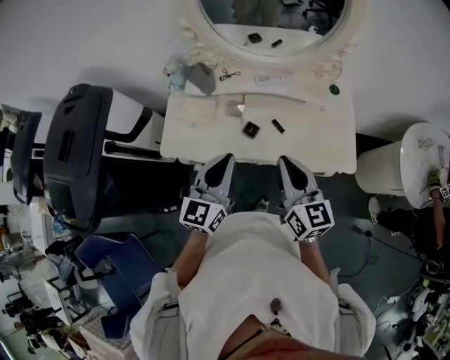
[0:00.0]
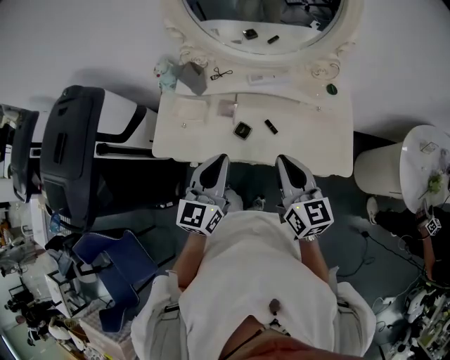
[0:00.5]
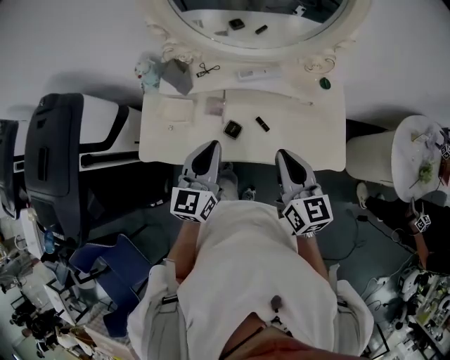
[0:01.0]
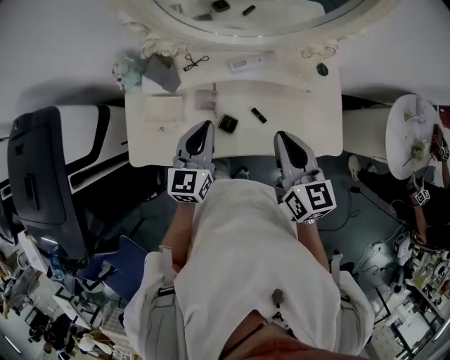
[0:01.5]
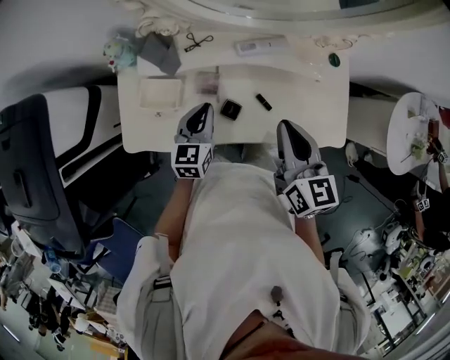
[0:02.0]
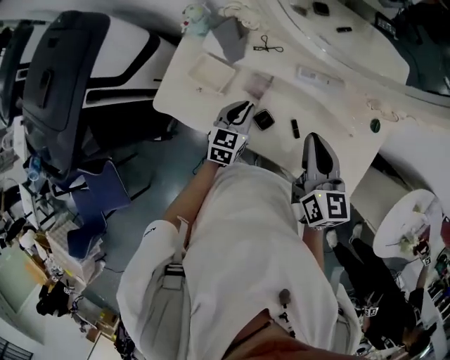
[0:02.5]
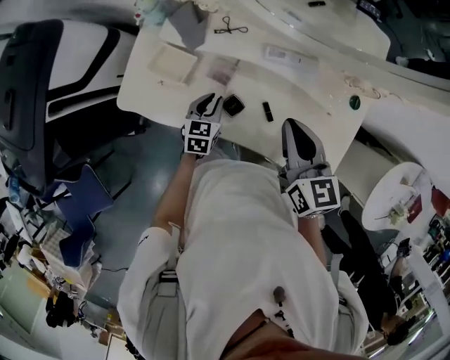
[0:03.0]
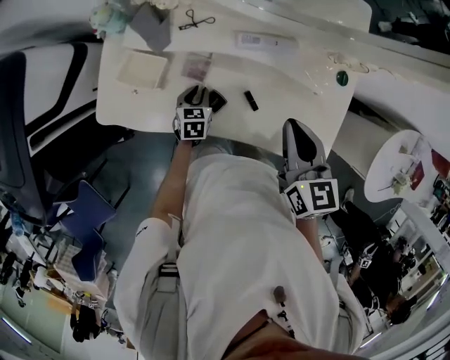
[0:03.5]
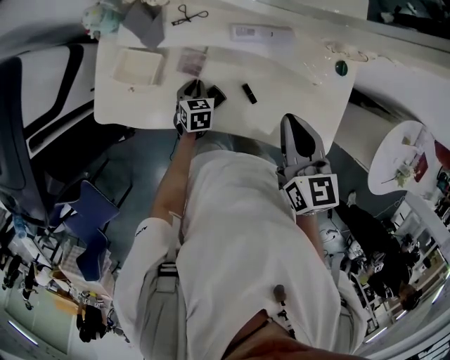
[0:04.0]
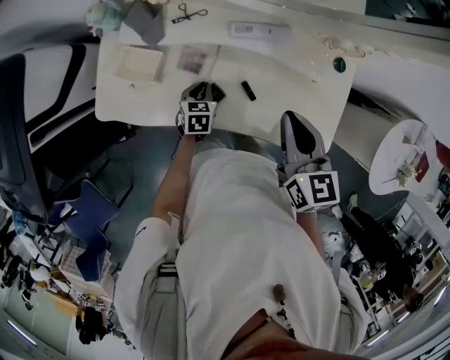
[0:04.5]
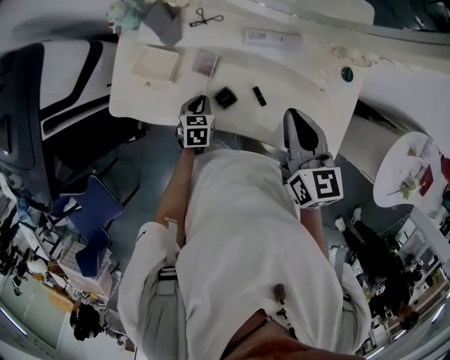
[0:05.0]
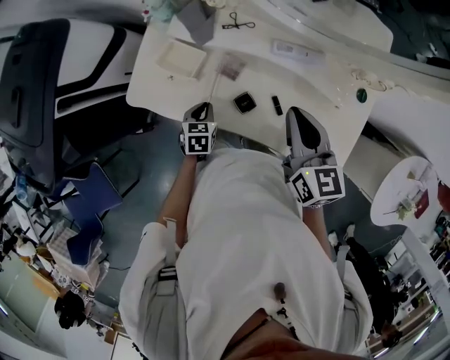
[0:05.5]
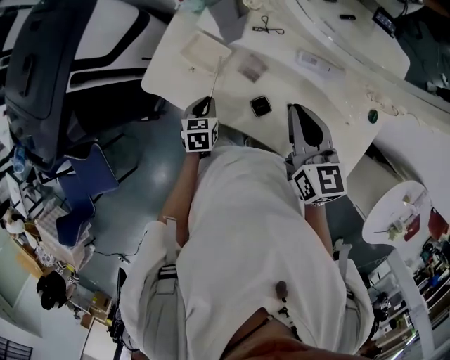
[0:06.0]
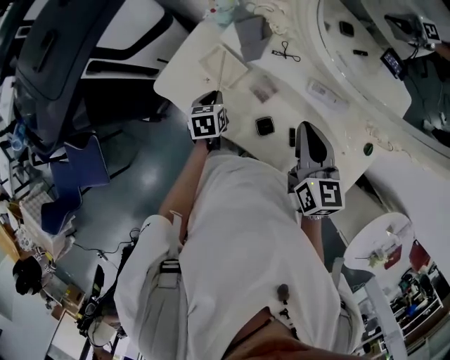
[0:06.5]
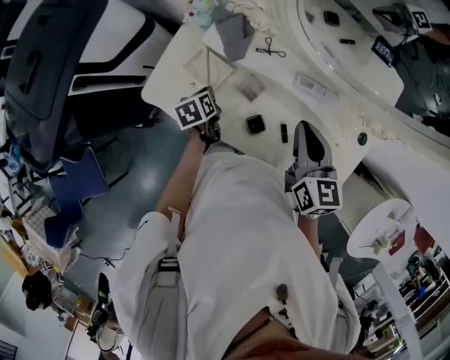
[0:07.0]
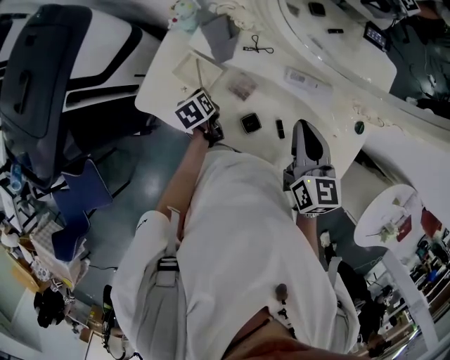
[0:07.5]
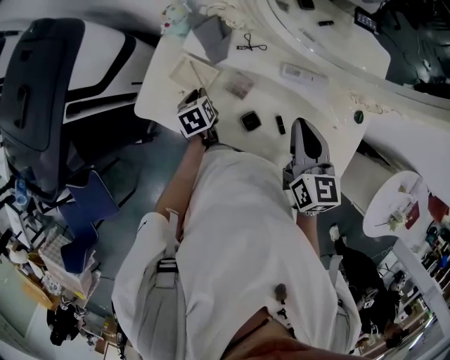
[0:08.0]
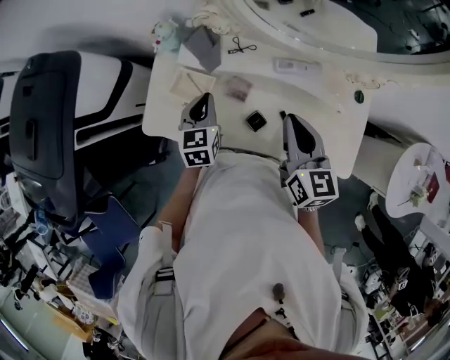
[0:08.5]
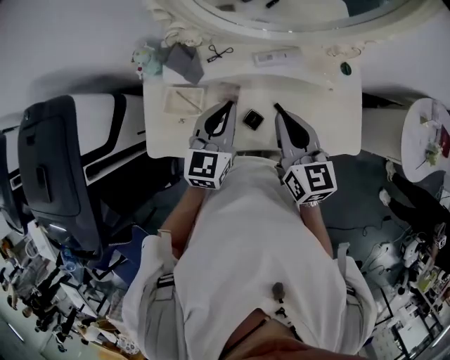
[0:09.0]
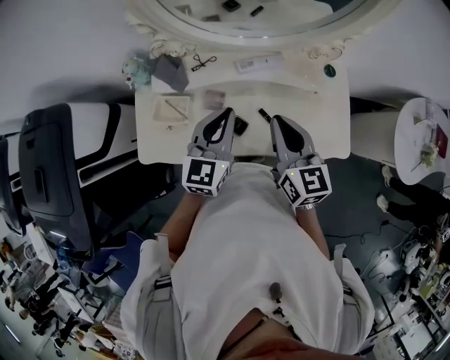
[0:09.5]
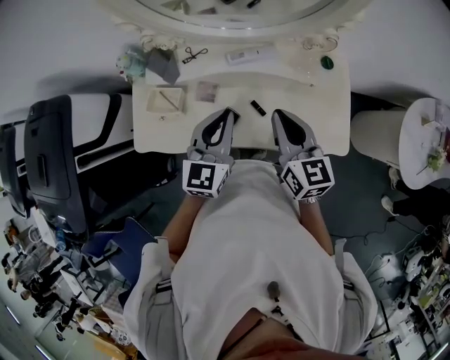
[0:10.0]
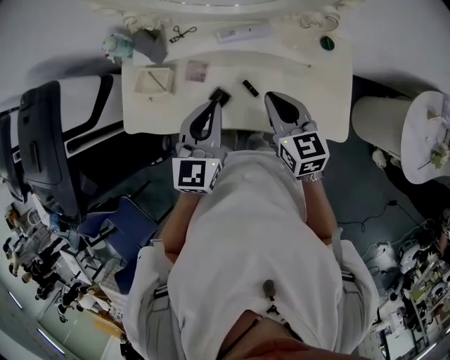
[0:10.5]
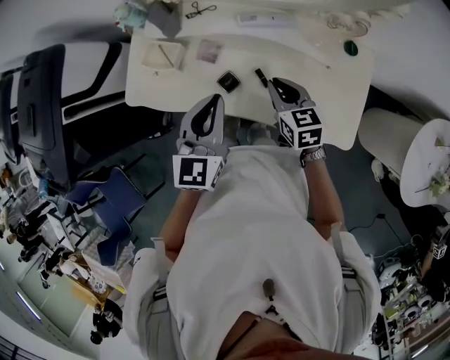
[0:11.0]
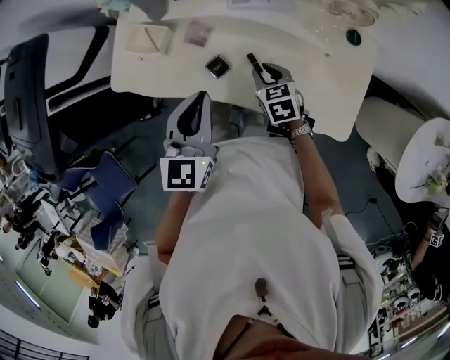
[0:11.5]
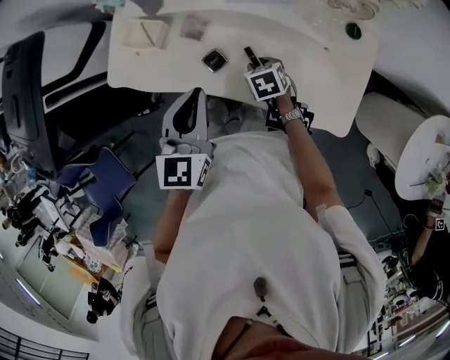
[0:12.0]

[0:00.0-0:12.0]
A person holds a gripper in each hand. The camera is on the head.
0:00.0 to 0:02.0: The left gripper goes roughly 30 cm forward and downward, and turns by roughly 20 degrees, while the right gripper heads forward, covering about 20 cm.
0:02.0 to 0:04.0: The right gripper heads to the right, covering approximately 5 cm. The left gripper heads downward, covering roughly 20 cm, and tips its fingers downward by about 30 degrees.
0:04.0 to 0:06.0: The right gripper goes some 10 cm to the left. The left gripper moves to the left, upward and backward, about 15 cm.
0:06.0 to 0:08.0: The left gripper heads forward, covering roughly 10 cm.
0:08.0 to 0:10.0: The right gripper ends up roughly 15 cm from where it was, while the left gripper changes place by roughly 35 cm, and tips its fingers upward by approximately 40 degrees.
0:10.0 to 0:12.0: The right gripper heads downward, covering approximately 30 cm, points its fingers some 50 degrees further downward, and opens up. The left gripper moves approximately 5 cm, and rotates approximately 20 degrees.

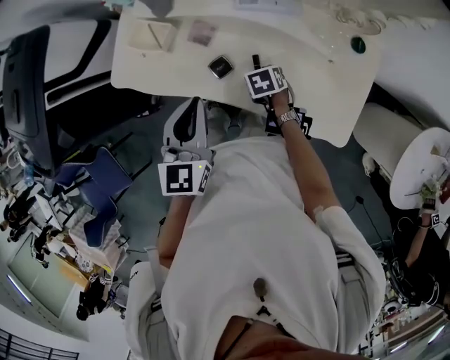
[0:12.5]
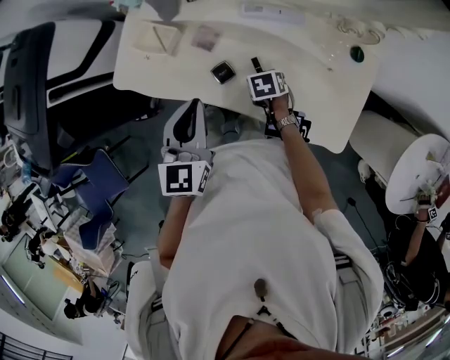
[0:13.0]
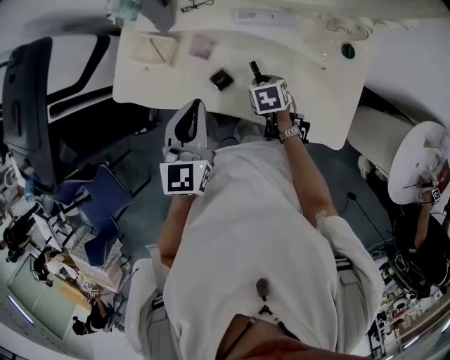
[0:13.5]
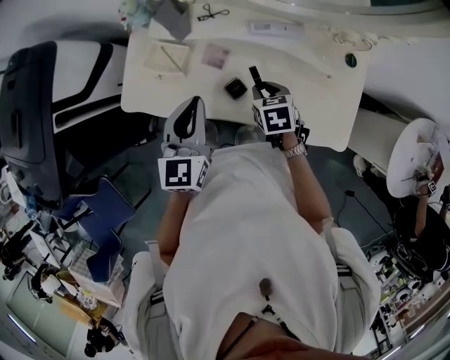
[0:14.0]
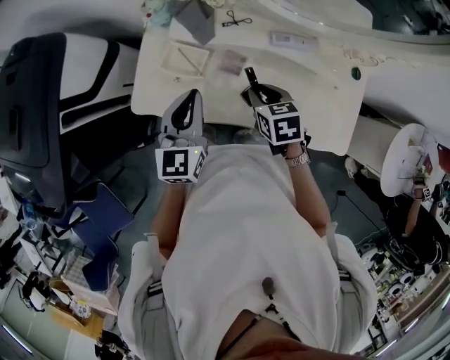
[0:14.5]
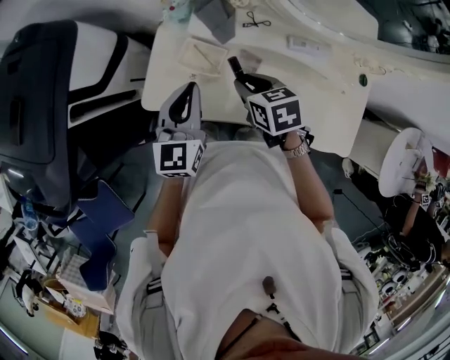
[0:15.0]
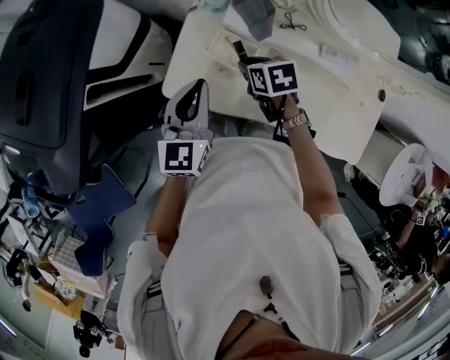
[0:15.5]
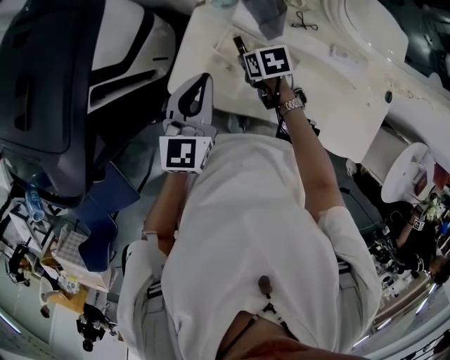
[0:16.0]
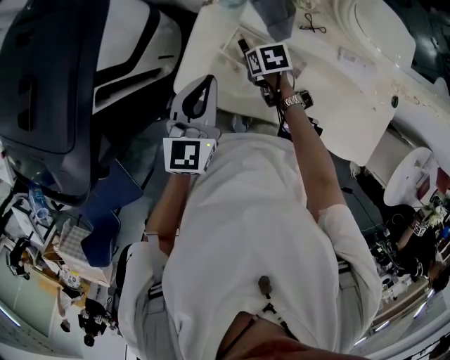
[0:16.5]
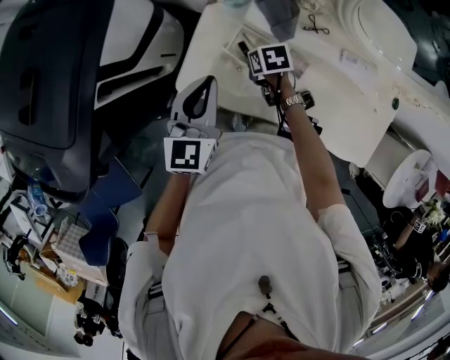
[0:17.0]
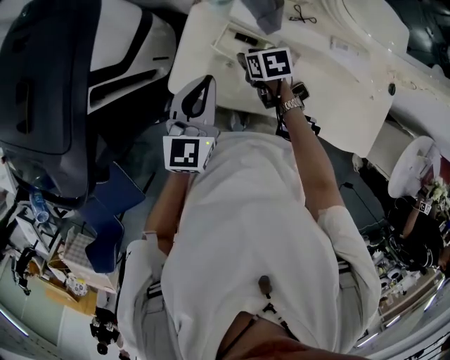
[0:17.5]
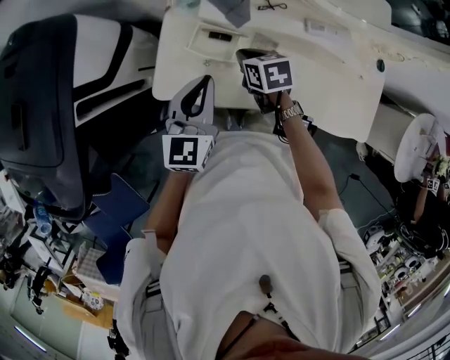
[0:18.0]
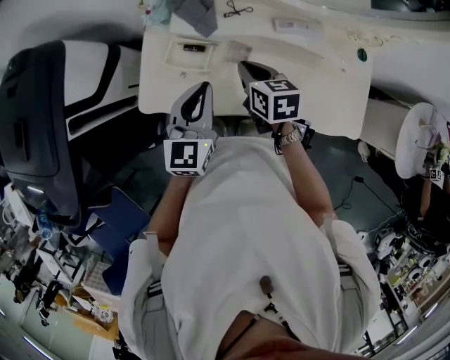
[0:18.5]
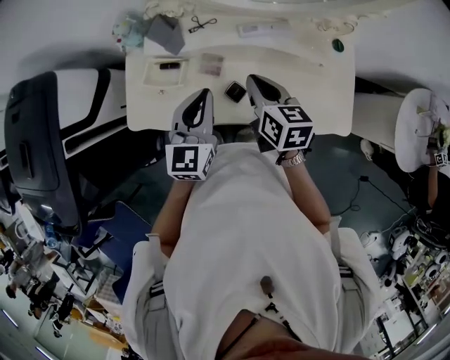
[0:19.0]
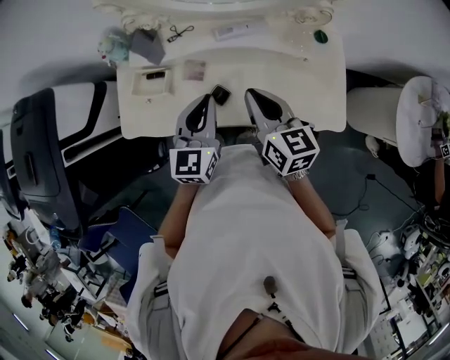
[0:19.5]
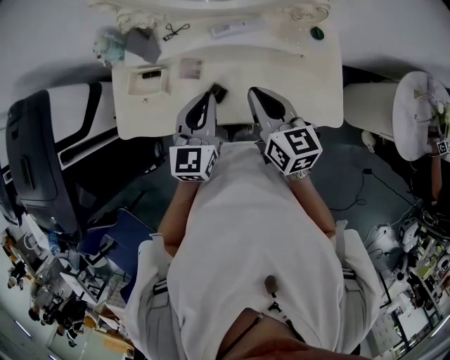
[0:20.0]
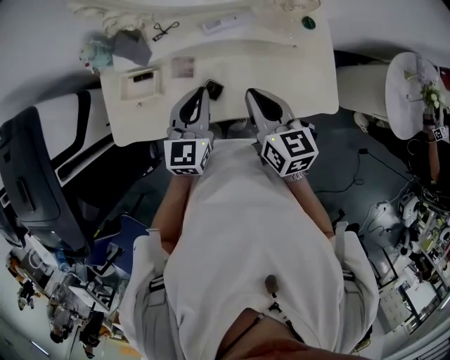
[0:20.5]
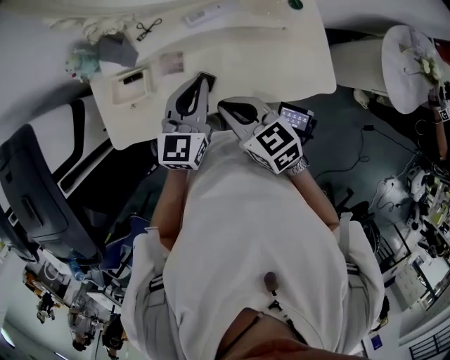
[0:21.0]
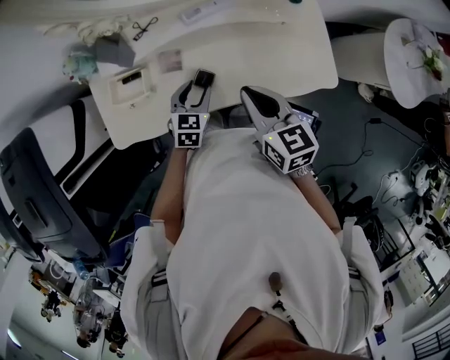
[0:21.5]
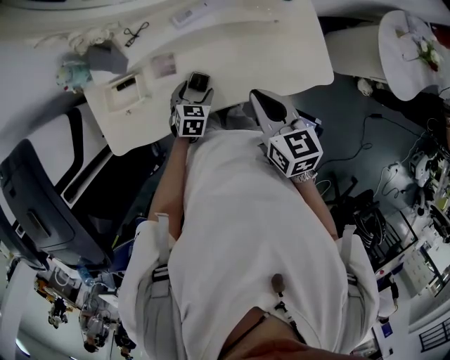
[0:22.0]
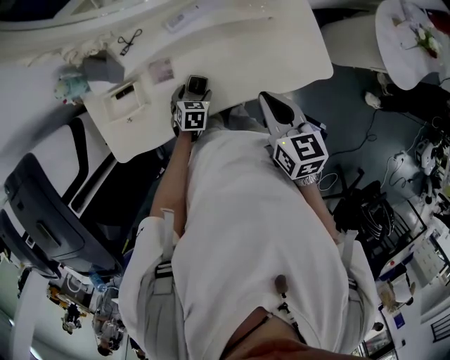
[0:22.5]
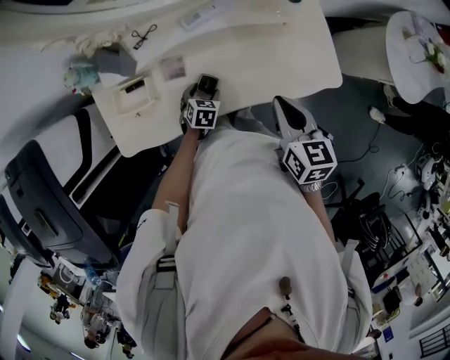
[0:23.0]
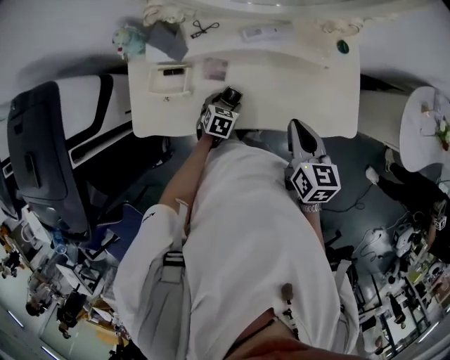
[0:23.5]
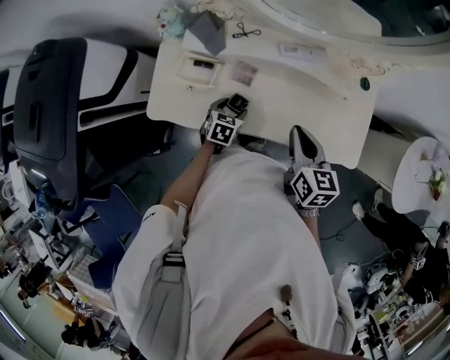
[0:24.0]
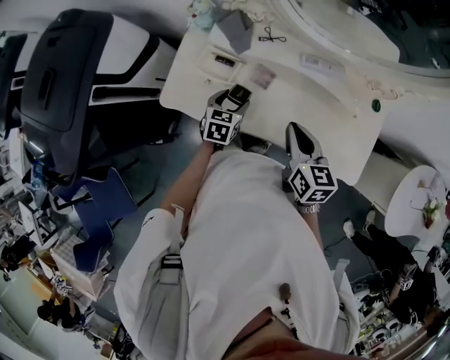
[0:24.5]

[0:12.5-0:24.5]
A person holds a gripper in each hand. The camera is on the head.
0:12.5 to 0:14.5: The left gripper shifts approximately 20 cm to the left and forward. The right gripper heads upward and to the left, covering roughly 25 cm.
0:14.5 to 0:16.5: The left gripper travels to the left and forward by approximately 15 cm; the right gripper shifts some 25 cm to the left, forward and downward, and swivels about 20 degrees.
0:16.5 to 0:18.5: The right gripper moves approximately 20 cm, turns by roughly 40 degrees, and closes its fingers. Meanwhile the left gripper moves approximately 15 cm.
0:18.5 to 0:20.5: The right gripper shifts roughly 20 cm to the right, upward and backward, and rotates about 20 degrees, while the left gripper goes some 15 cm to the right.
0:20.5 to 0:22.5: The left gripper shifts roughly 25 cm downward, tilts its fingers some 40 degrees downward, and opens up; the right gripper shifts some 5 cm to the right.
0:22.5 to 0:24.5: The left gripper shifts by about 20 cm, and turns by roughly 40 degrees; the right gripper ends up some 15 cm from where it was, and changes its angle by about 30 degrees.

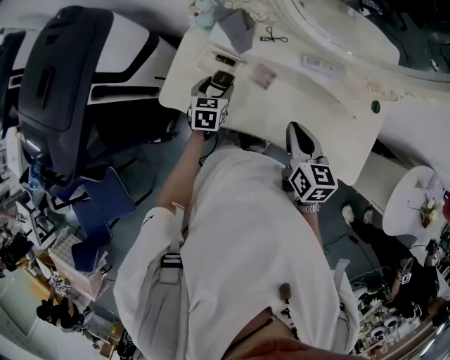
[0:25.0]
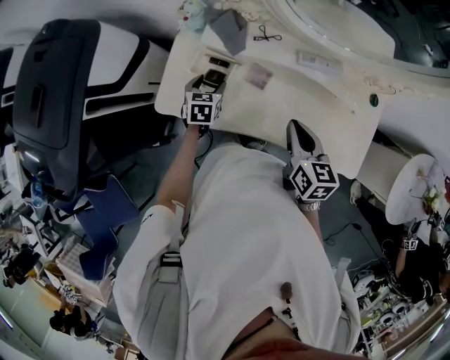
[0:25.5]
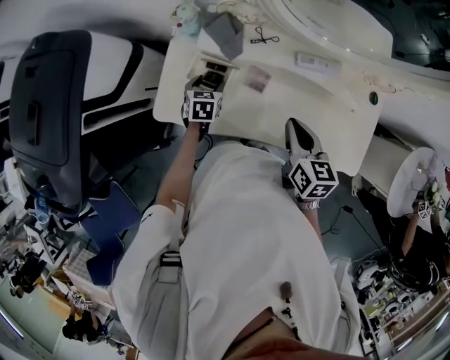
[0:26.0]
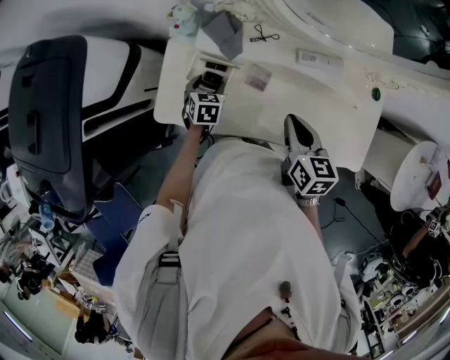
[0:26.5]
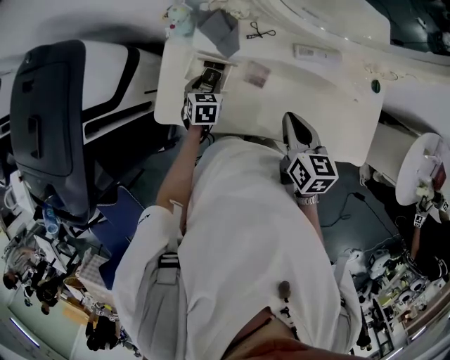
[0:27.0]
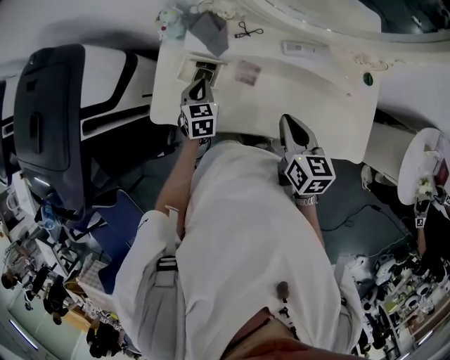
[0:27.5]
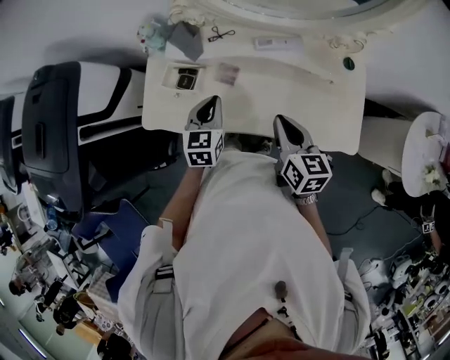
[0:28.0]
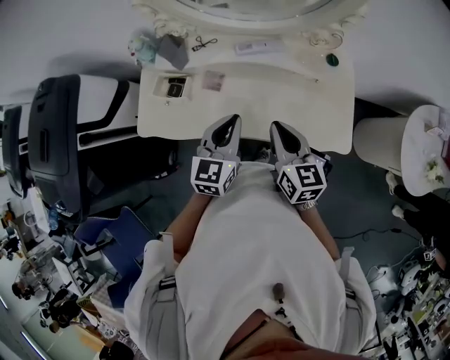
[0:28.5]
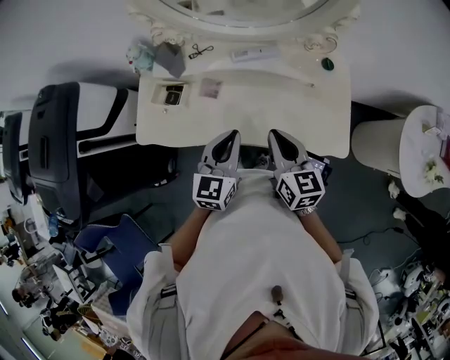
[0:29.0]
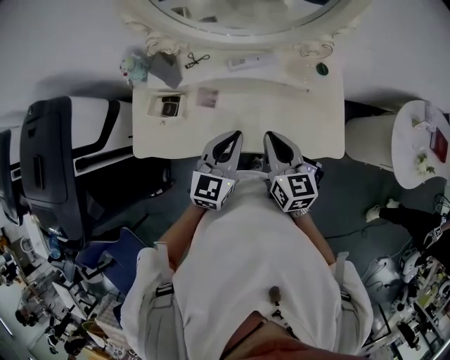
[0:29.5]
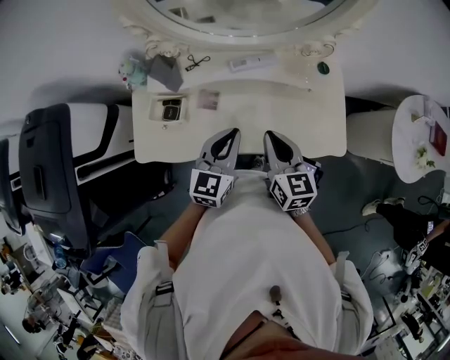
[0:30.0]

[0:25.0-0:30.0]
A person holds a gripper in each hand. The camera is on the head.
0:25.0 to 0:27.5: The left gripper closes its fingers.
0:27.5 to 0:30.0: The right gripper travels to the right by some 10 cm. The left gripper shifts some 30 cm to the right, upward and backward, and swivels roughly 40 degrees.
